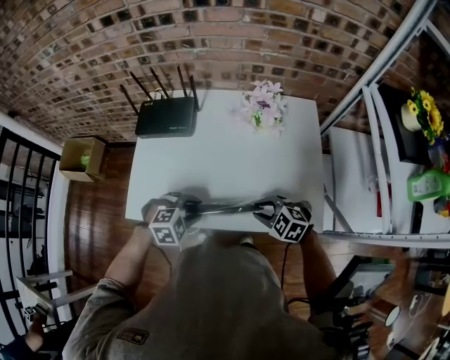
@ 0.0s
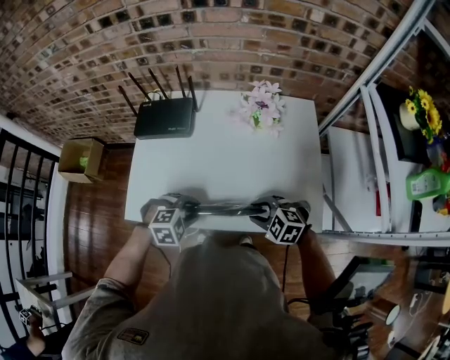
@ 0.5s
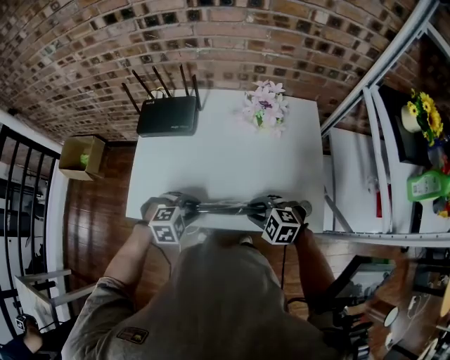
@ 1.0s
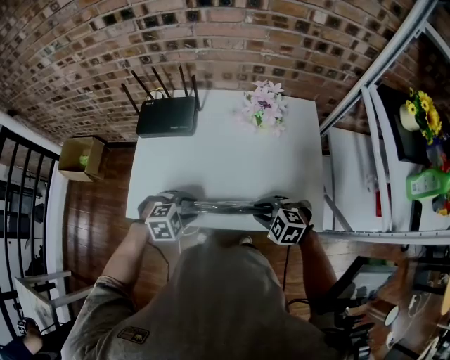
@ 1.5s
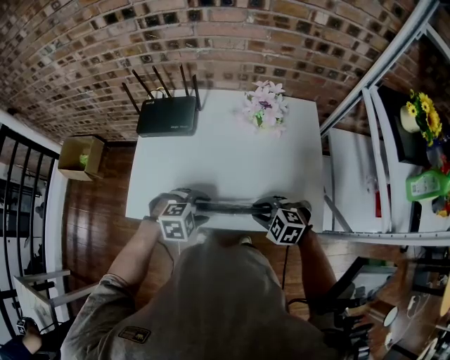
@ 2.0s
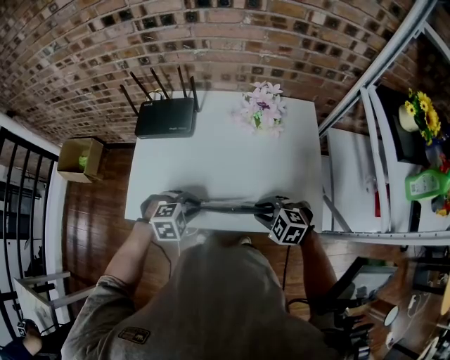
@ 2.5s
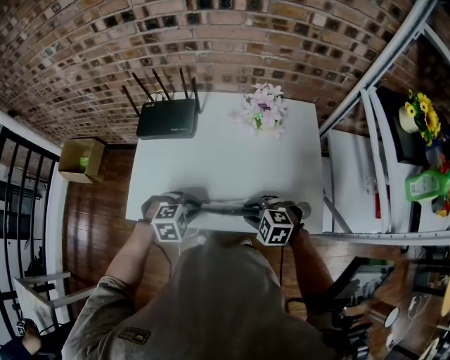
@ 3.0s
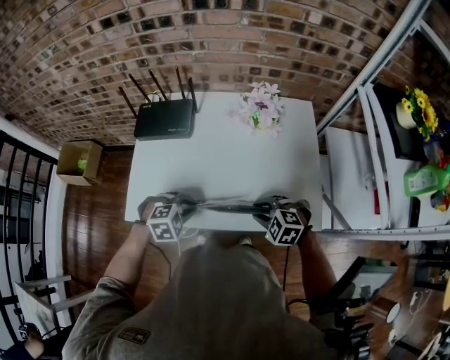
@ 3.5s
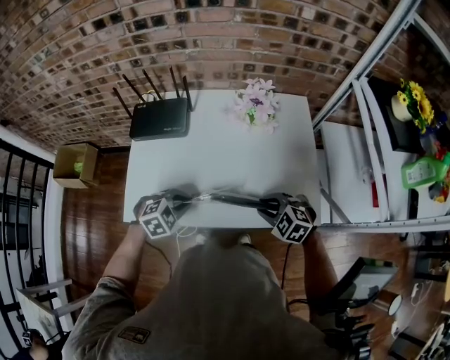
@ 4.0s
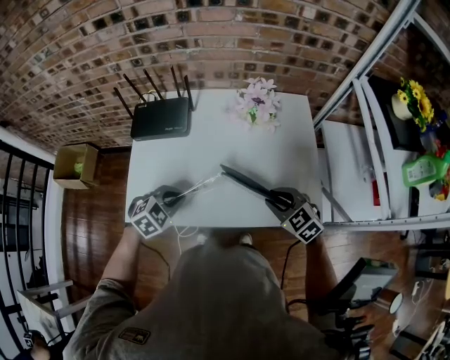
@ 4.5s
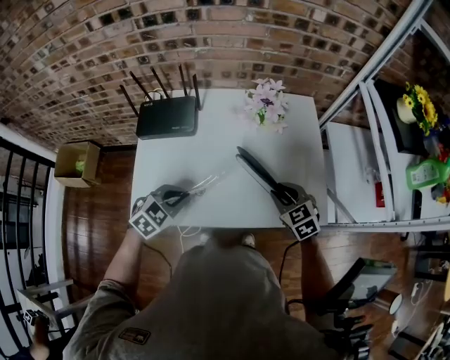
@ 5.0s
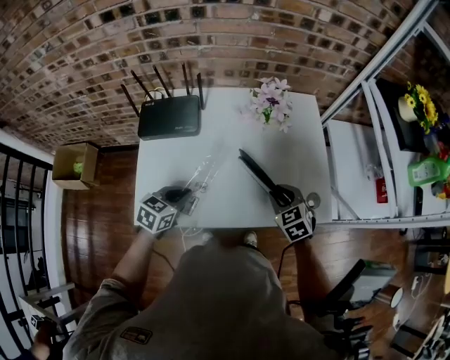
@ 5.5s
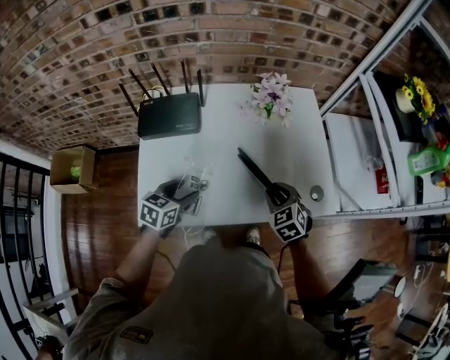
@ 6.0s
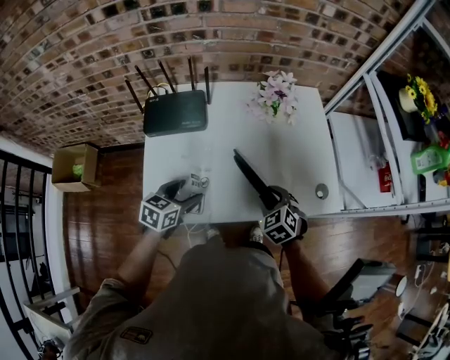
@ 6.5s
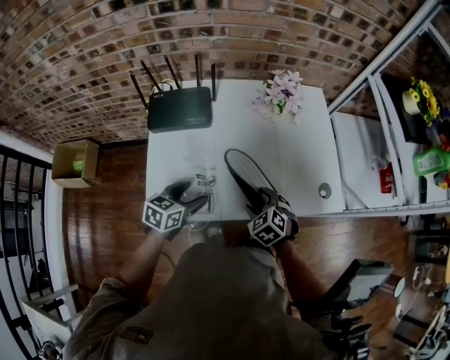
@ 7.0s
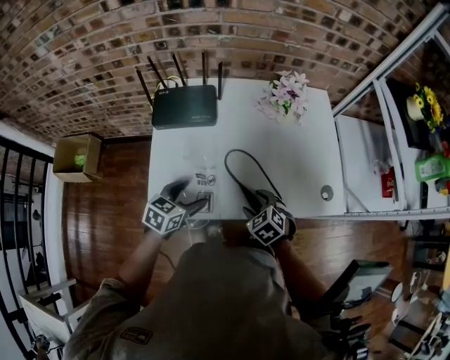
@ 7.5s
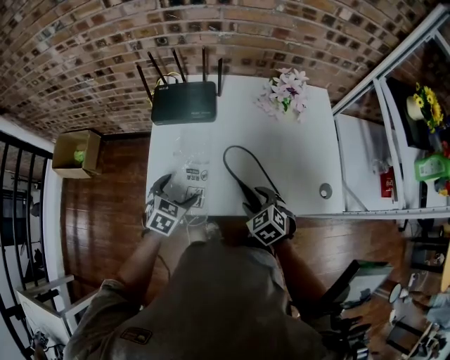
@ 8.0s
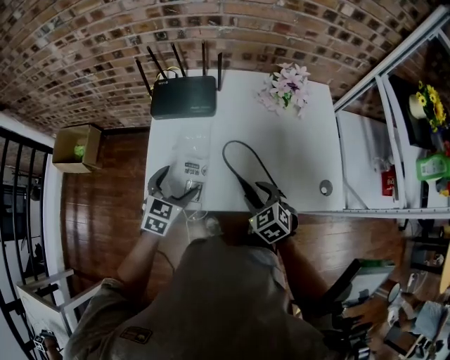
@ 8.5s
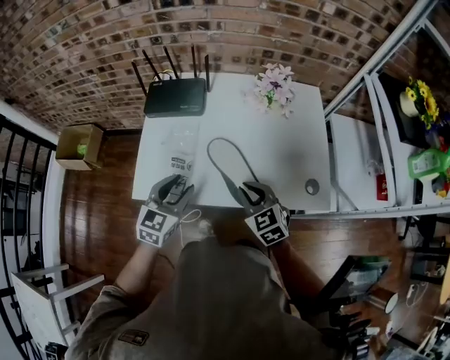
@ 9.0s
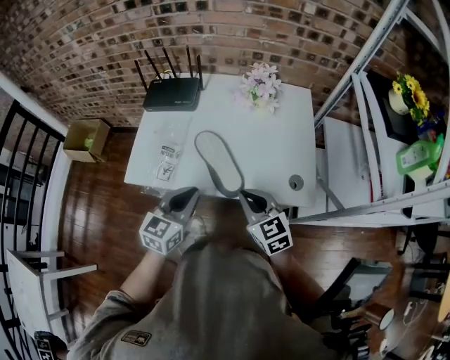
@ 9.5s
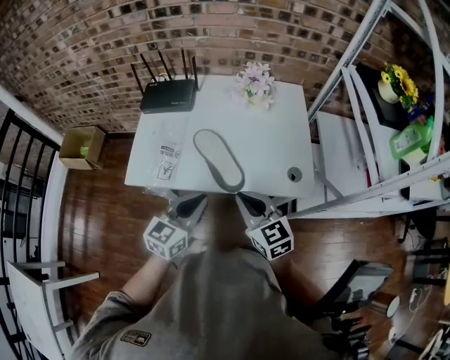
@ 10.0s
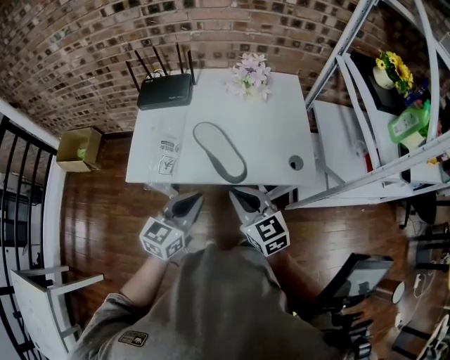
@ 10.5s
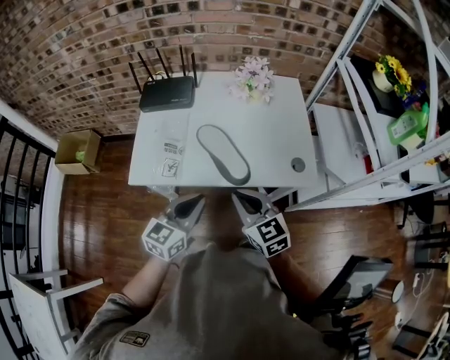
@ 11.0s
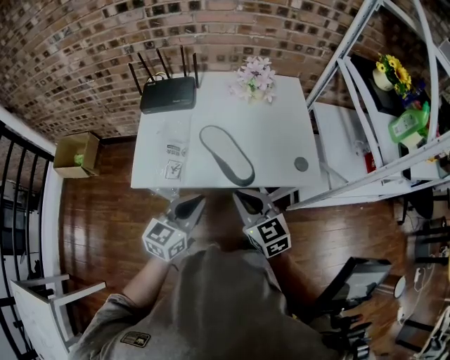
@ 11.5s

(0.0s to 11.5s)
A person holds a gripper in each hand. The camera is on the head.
0.0s - 2.0s: The grippers stay close to where they were, moving slightly.
2.0s - 4.0s: The left gripper moves some 5 cm, and closes.
4.0s - 6.0s: The left gripper goes some 10 cm to the left, rotates around the line of its fingers by roughly 40 degrees, counterclockwise from behind, and opens up; the right gripper moves about 5 cm, and turns by about 40 degrees.
6.0s - 7.5s: The right gripper shifts approximately 15 cm to the left, backward and downward, and opens its fingers.
7.5s - 9.5s: The left gripper is displaced to the right, upward and backward by about 20 cm, swivels approximately 30 degrees, and closes; the right gripper travels upward, to the right and backward by roughly 20 cm, tips its fingers upward by about 30 degrees, and closes its fingers.
9.5s - 11.5s: The left gripper ends up approximately 5 cm from where it was. The right gripper heads to the left, covering approximately 5 cm.

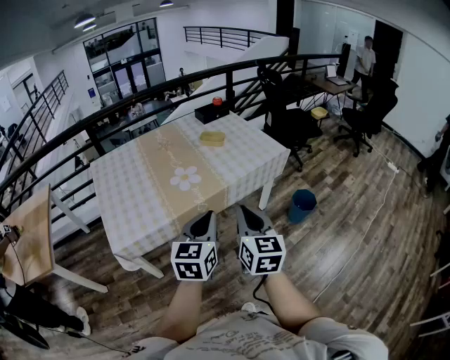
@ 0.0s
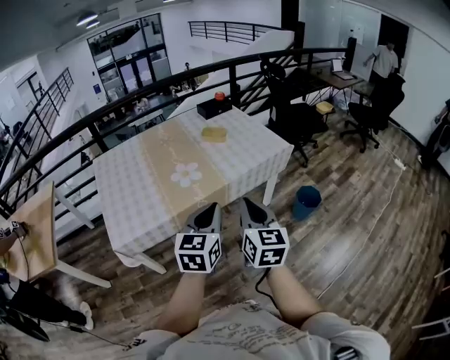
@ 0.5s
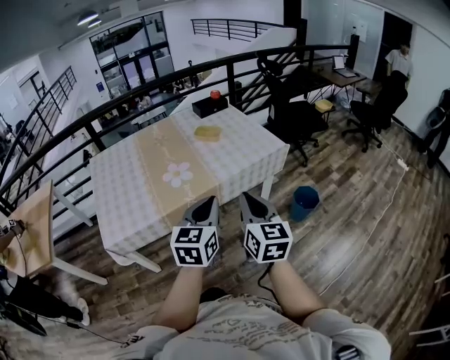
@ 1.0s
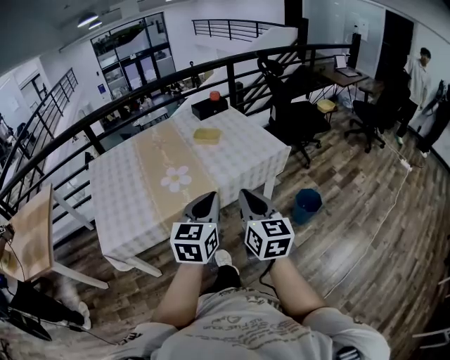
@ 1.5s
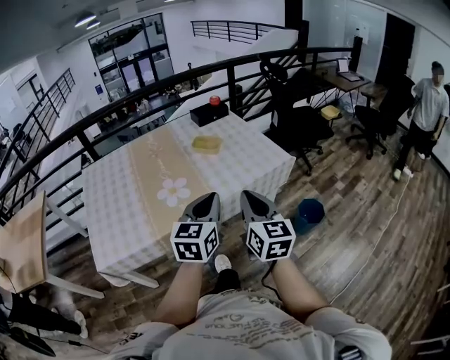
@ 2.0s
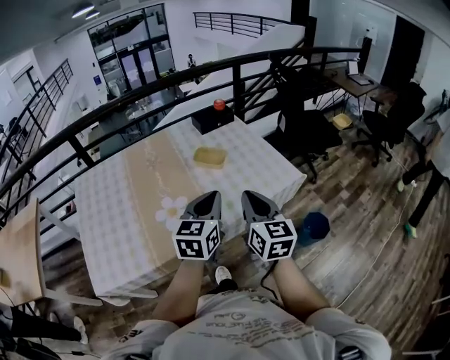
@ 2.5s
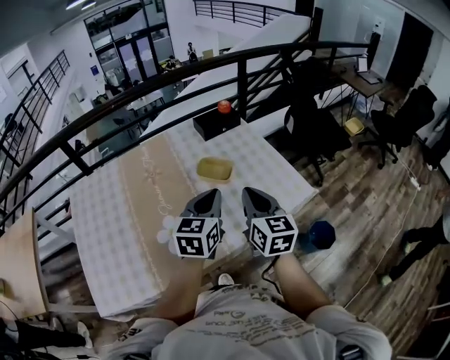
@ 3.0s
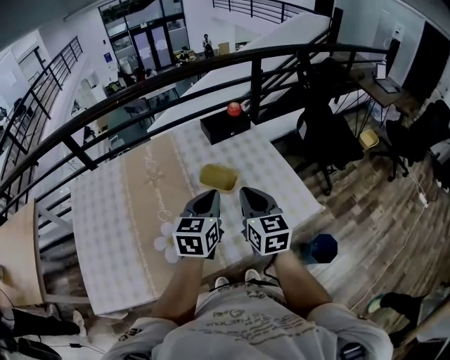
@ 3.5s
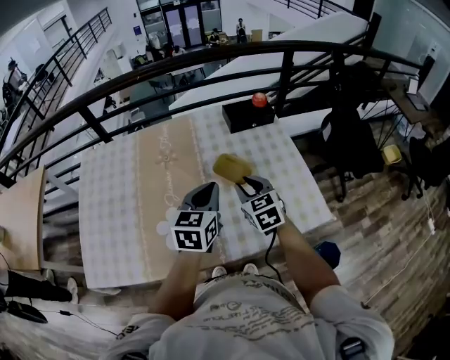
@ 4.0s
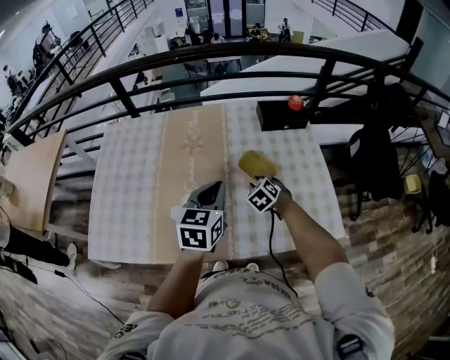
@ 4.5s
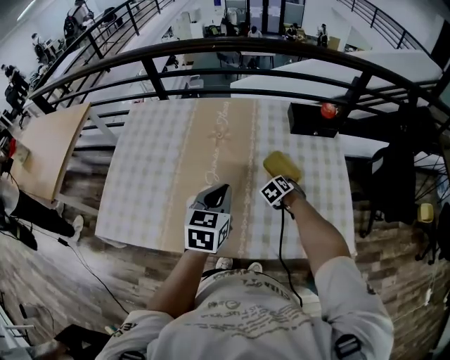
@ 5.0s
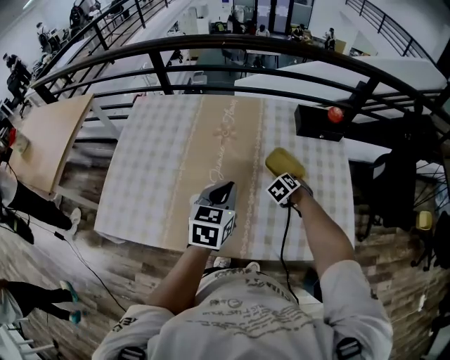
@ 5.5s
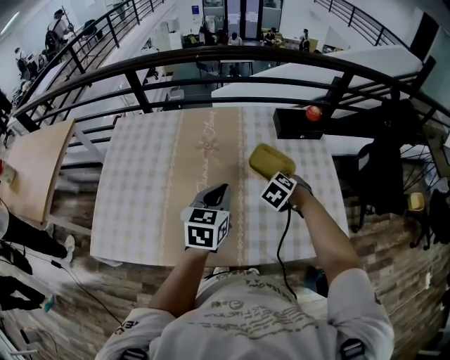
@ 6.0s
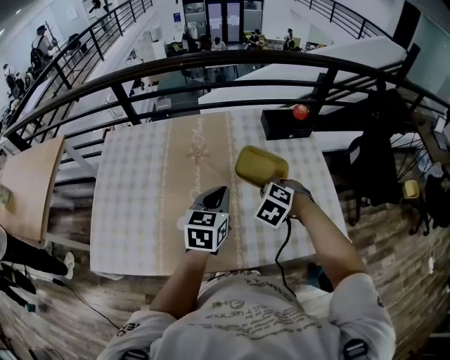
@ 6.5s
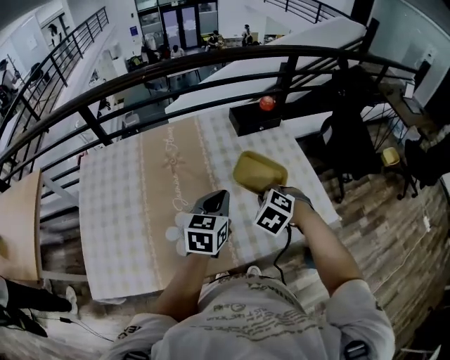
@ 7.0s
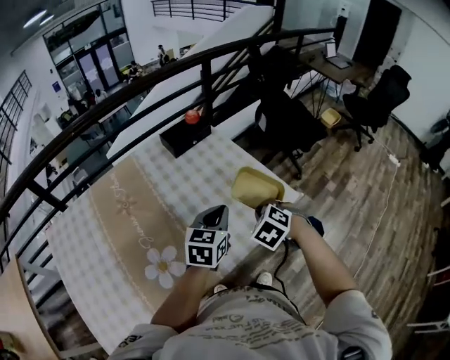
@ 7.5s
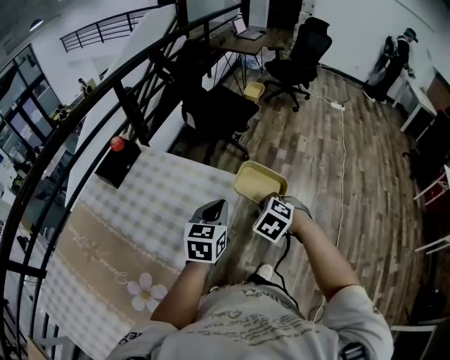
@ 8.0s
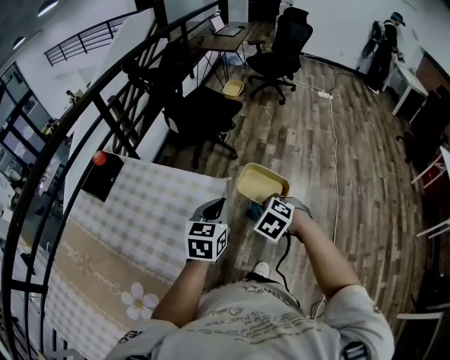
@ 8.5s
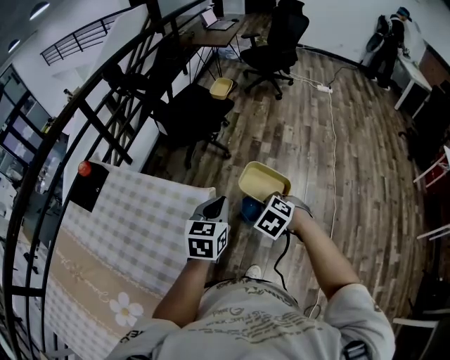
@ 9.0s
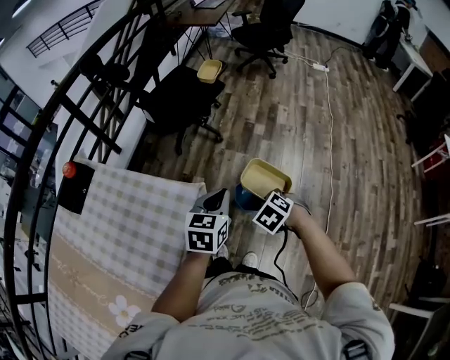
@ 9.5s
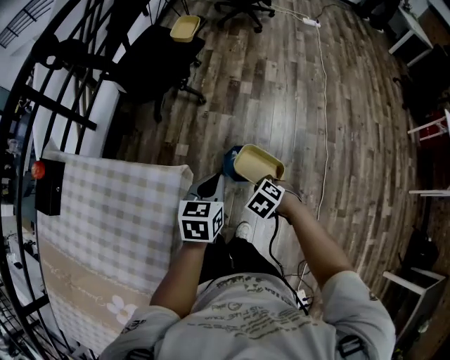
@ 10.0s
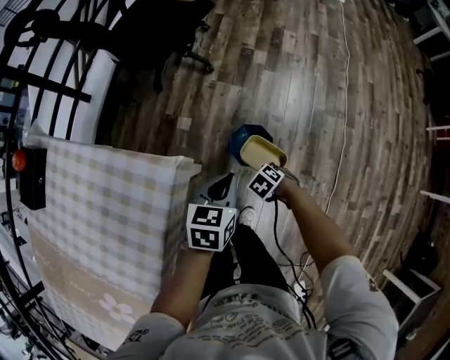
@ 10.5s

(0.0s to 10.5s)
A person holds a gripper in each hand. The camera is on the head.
0.0s - 2.0s: Both grippers travel together forward and to the right, roughly 20 cm.
2.0s - 4.0s: The pair of grippers is taken forward, approximately 40 cm. The right gripper swivels roughly 40 degrees, and opens up.
4.0s - 6.5s: Both grippers move to the left, approximately 5 cm. The right gripper travels downward and back again, some 20 cm each way, tips its fingers downward by some 30 degrees, and closes its fingers.
6.5s - 8.5s: Both grippers are carried roughly 50 cm. The left gripper changes its angle by some 70 degrees, while the right gripper rotates around the line of its fingers by roughly 60 degrees, clockwise from behind.
8.5s - 10.5s: The left gripper travels downward by roughly 25 cm, and turns by roughly 20 degrees. Meanwhile the right gripper shifts some 40 cm downward, and rotates about 30 degrees.

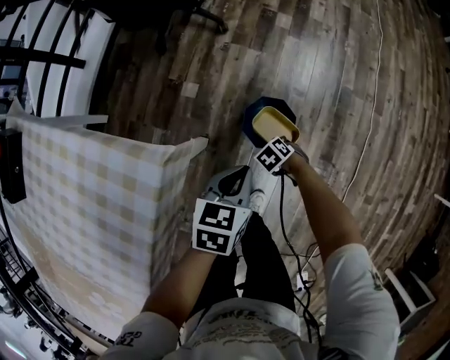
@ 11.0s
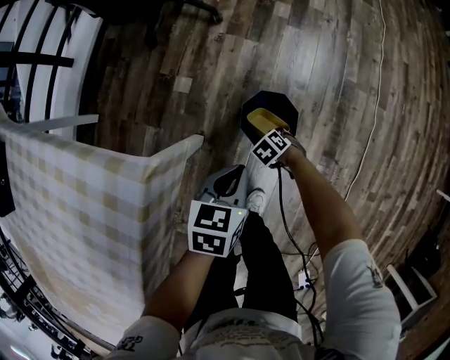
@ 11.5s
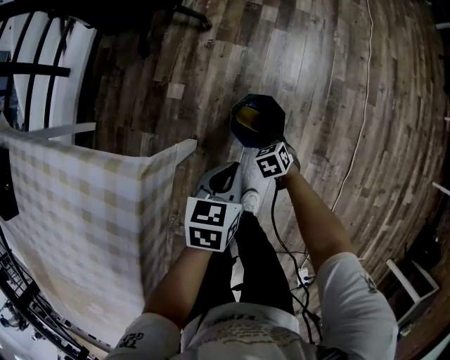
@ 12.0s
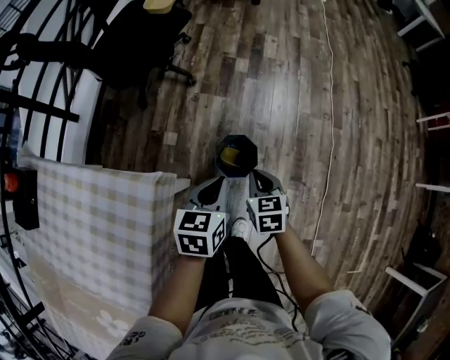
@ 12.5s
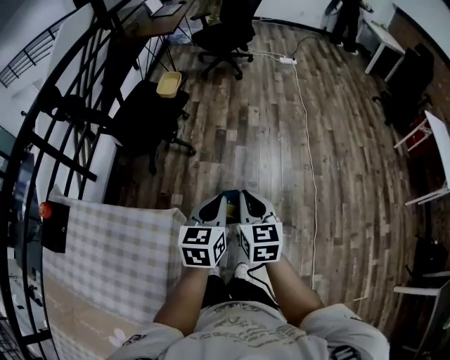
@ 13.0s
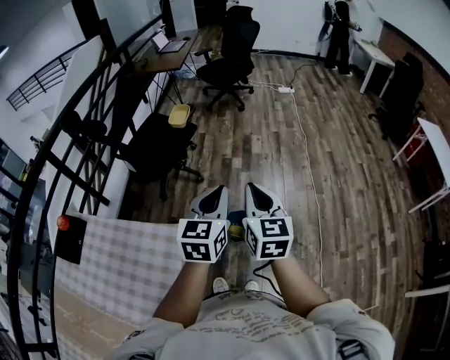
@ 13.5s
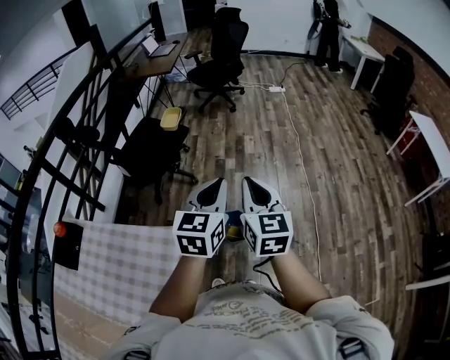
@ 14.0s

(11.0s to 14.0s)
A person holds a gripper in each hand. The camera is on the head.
11.0s - 12.5s: The left gripper heads upward, covering approximately 15 cm; the right gripper travels upward by about 30 cm, and tips its fingers upward by about 40 degrees.
12.5s - 14.0s: Both grippers move upward, some 40 cm. The left gripper changes its angle by roughly 30 degrees. The right gripper points its fingers about 40 degrees further upward.

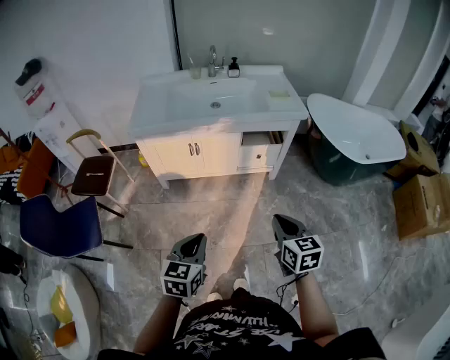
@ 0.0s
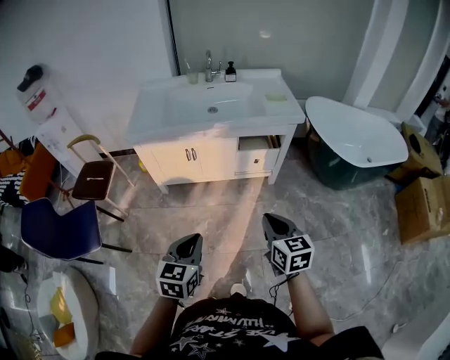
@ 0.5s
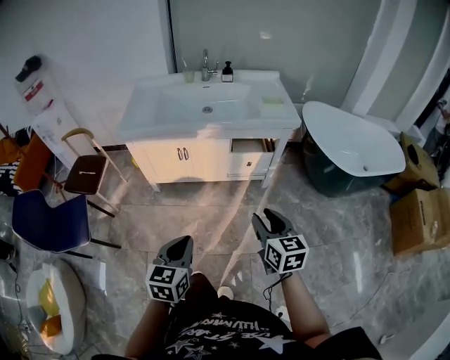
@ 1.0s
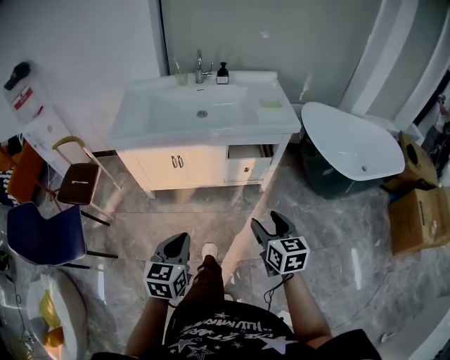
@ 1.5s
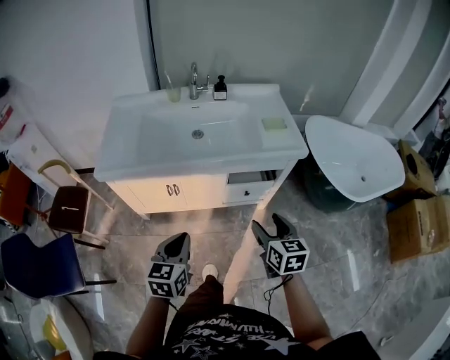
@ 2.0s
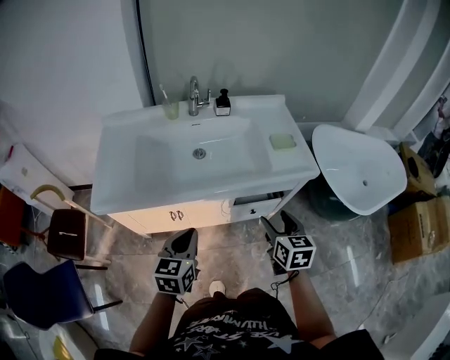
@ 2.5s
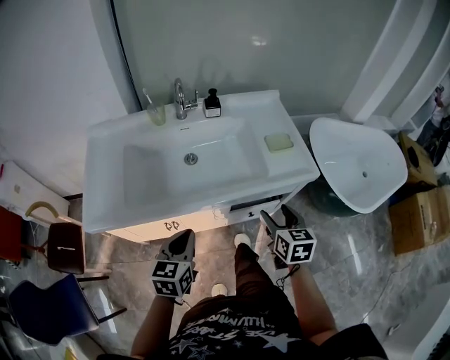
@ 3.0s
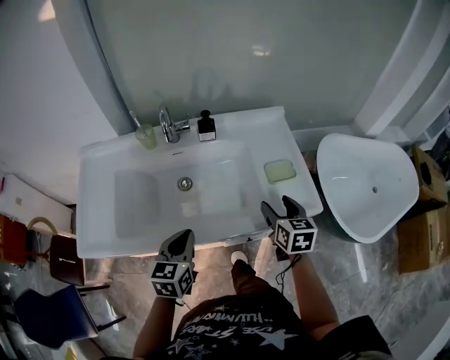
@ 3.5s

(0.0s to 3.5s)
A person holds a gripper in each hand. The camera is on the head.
0.0s - 2.0s: Both grippers travel together forward, some 30 cm. The right gripper opens.
2.0s - 3.5s: The grippers both shift forward by about 35 cm.
